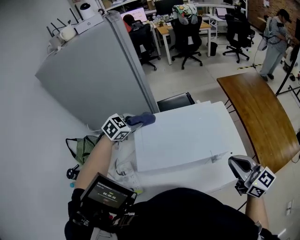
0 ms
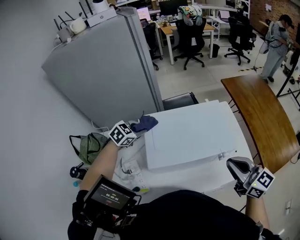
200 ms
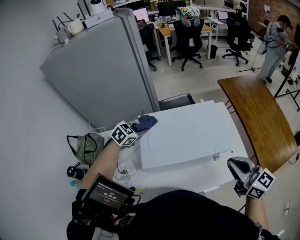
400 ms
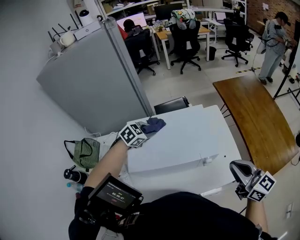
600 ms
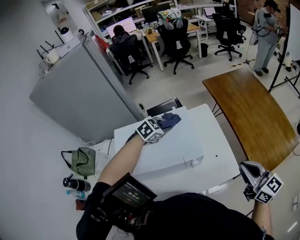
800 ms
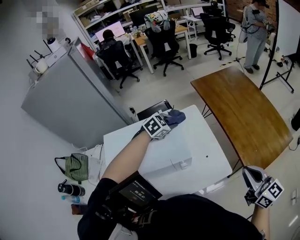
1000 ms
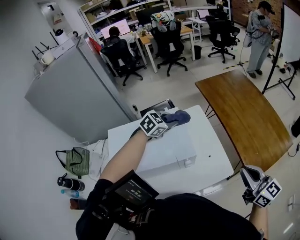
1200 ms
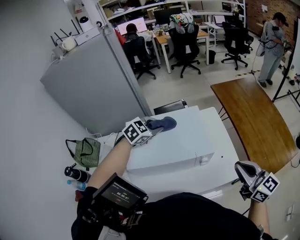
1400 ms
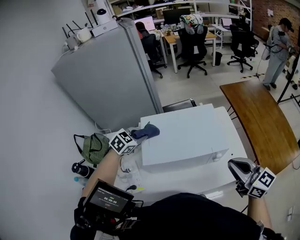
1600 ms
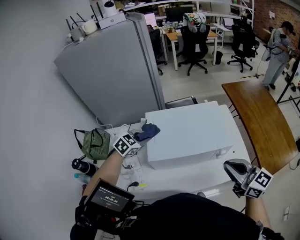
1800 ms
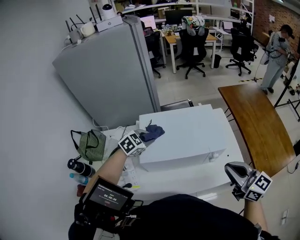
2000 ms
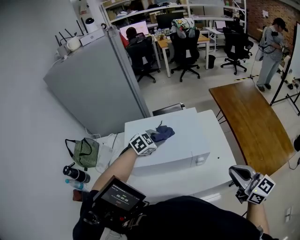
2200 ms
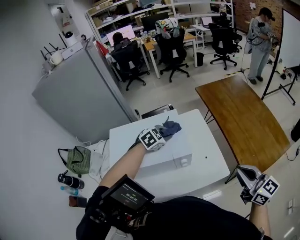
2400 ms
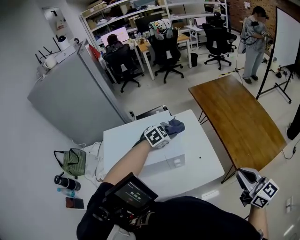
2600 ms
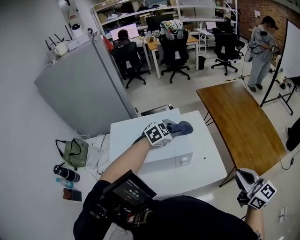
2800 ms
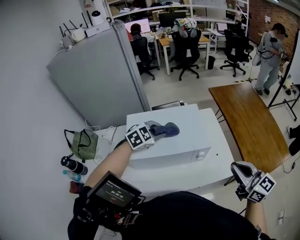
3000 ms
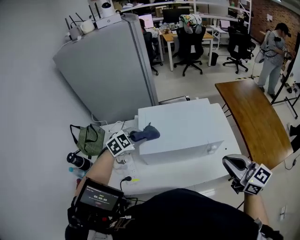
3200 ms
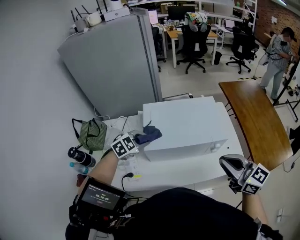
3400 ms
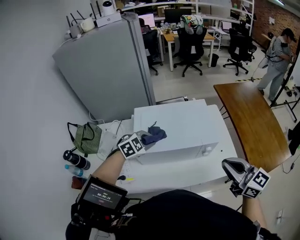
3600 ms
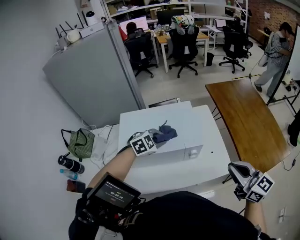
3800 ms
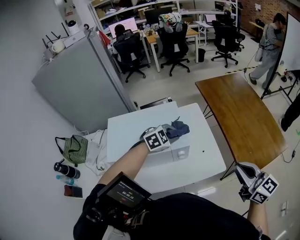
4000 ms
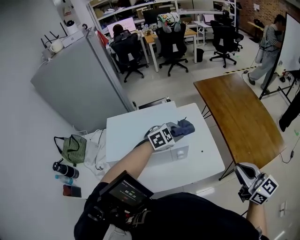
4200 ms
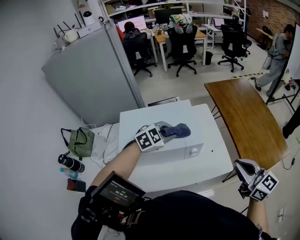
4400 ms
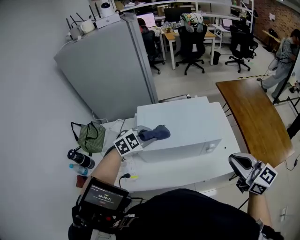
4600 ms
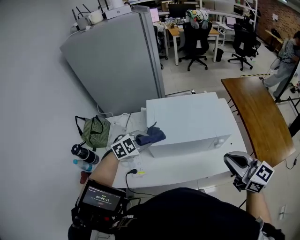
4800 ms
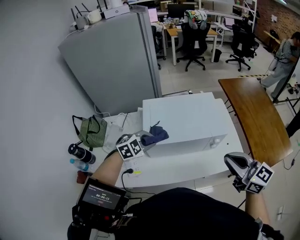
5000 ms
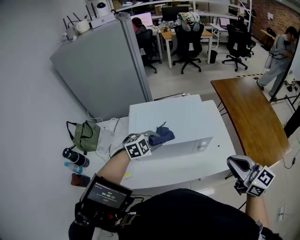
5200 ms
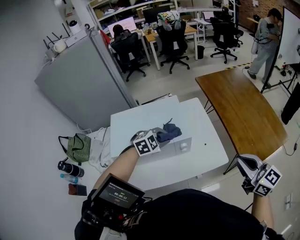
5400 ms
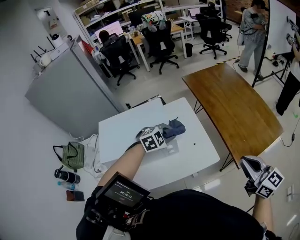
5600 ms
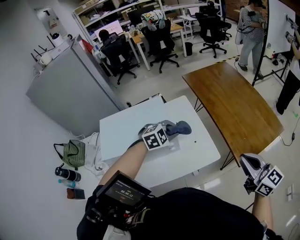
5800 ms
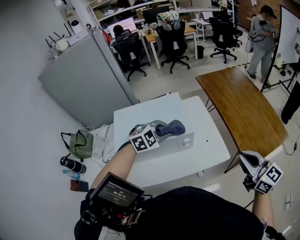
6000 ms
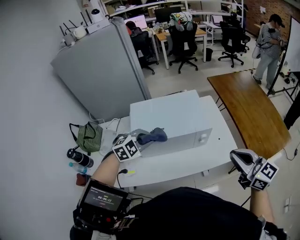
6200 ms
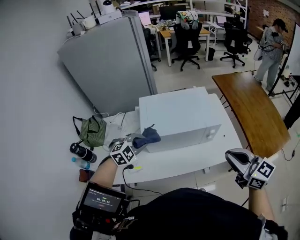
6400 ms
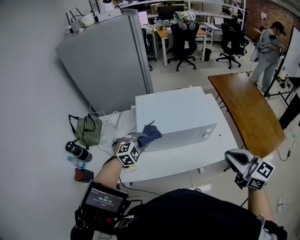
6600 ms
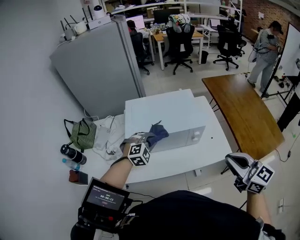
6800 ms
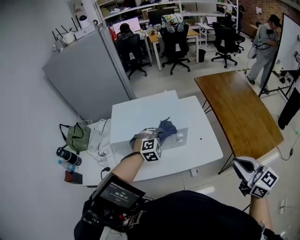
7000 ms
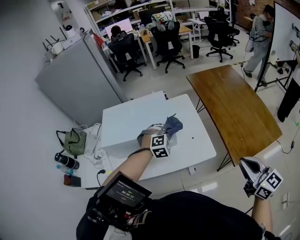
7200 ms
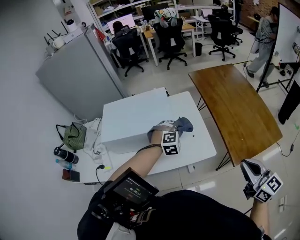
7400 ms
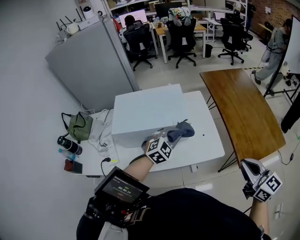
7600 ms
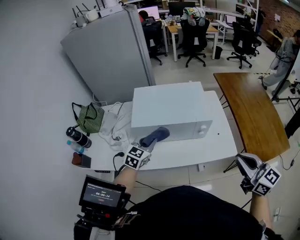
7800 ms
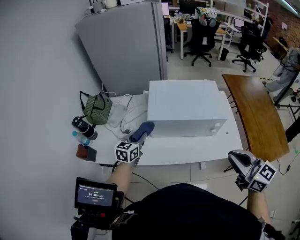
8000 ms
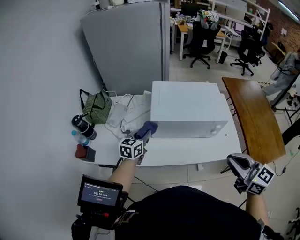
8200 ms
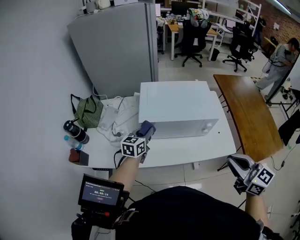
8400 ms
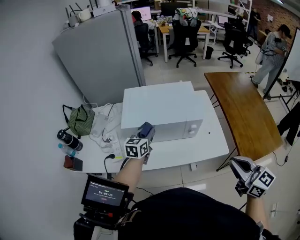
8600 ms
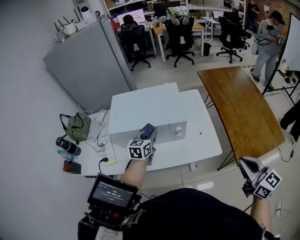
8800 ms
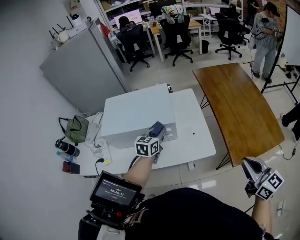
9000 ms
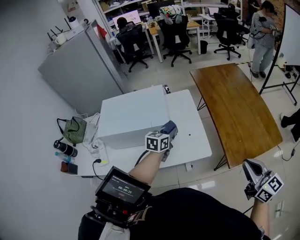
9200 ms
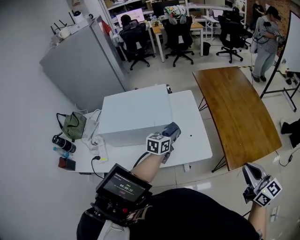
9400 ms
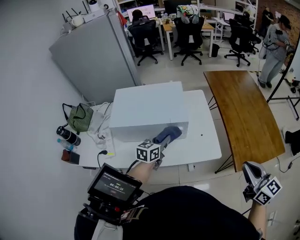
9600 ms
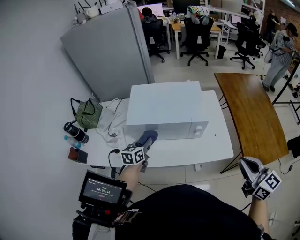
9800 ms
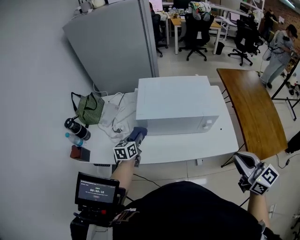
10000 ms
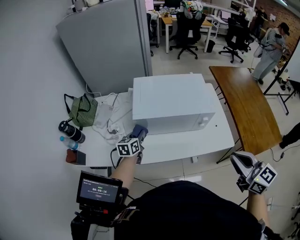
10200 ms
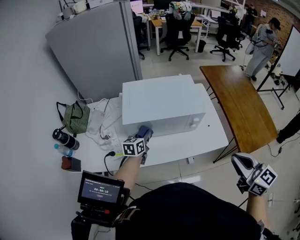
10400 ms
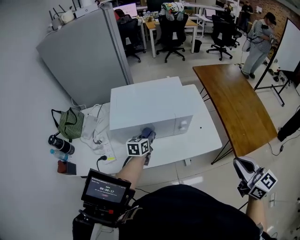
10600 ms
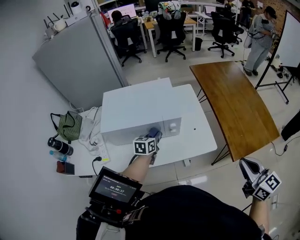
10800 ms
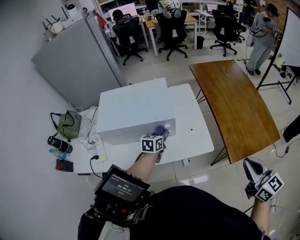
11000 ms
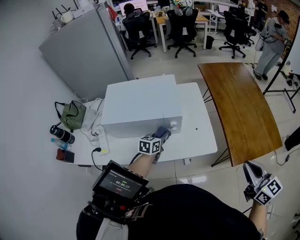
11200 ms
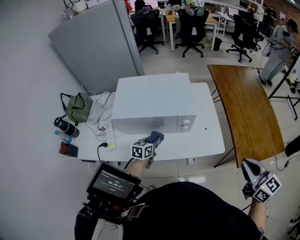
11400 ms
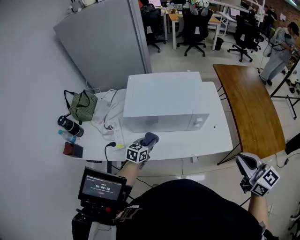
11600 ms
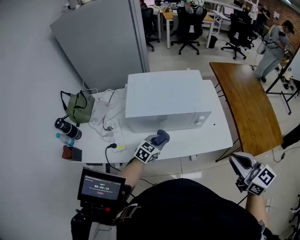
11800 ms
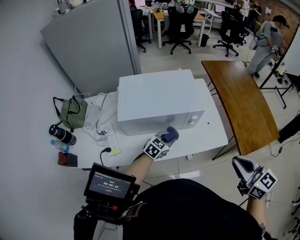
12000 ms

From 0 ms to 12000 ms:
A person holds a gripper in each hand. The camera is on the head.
From 0 ms to 1600 ms: The left gripper moves left and right over roughly 40 cm, changing direction 2 times; the right gripper goes left and right, some 30 cm each way, reversing 2 times.
From 1600 ms to 3000 ms: The left gripper shifts about 20 cm to the right. The right gripper swings left and right, roughly 30 cm each way, with 2 reversals.
From 3000 ms to 4400 ms: The right gripper goes left and right, roughly 25 cm each way, reversing 2 times, while the left gripper moves left and right over about 35 cm, changing direction 2 times.
From 4400 ms to 6000 ms: The right gripper moves left and right over roughly 35 cm, changing direction 2 times. Meanwhile the left gripper moves left and right over approximately 40 cm, changing direction 2 times.
From 6000 ms to 7600 ms: The left gripper goes left and right, about 40 cm each way, reversing 2 times, and rotates roughly 20 degrees, while the right gripper moves left and right over some 30 cm, changing direction 2 times.
From 7600 ms to 9000 ms: The right gripper reaches roughly 25 cm to the left, then returns, while the left gripper is displaced forward by approximately 5 cm, reaches roughly 40 cm to the left, then returns, and twists approximately 50 degrees counterclockwise, seen from behind.
From 9000 ms to 10400 ms: The left gripper moves left and right over roughly 40 cm, changing direction 2 times. Meanwhile the right gripper is displaced to the left by about 25 cm.
From 10400 ms to 12000 ms: The left gripper moves left and right over approximately 25 cm, changing direction 2 times, and turns by about 40 degrees, while the right gripper travels to the right and back again, approximately 25 cm each way.

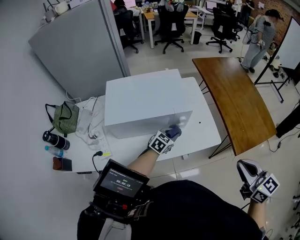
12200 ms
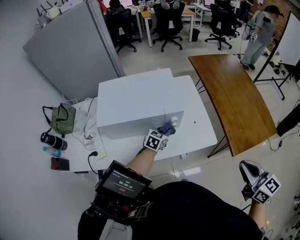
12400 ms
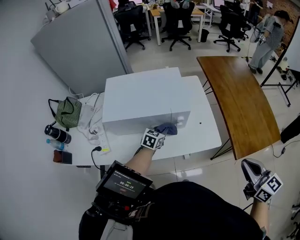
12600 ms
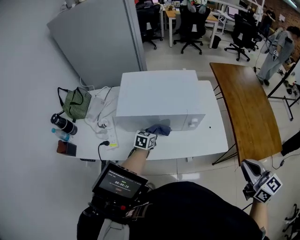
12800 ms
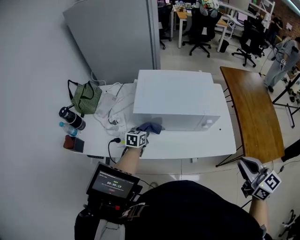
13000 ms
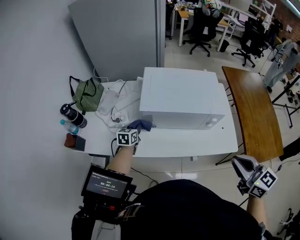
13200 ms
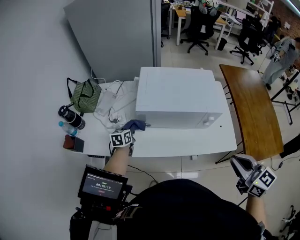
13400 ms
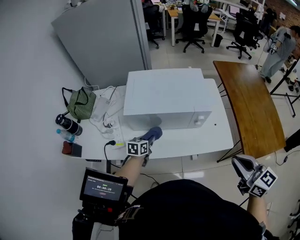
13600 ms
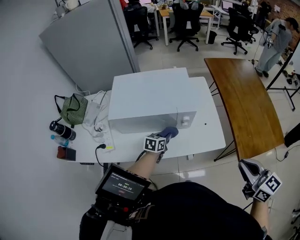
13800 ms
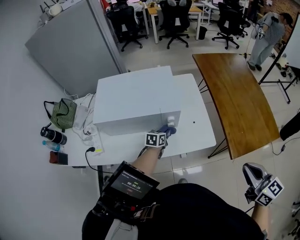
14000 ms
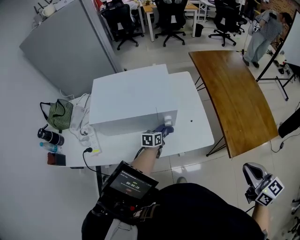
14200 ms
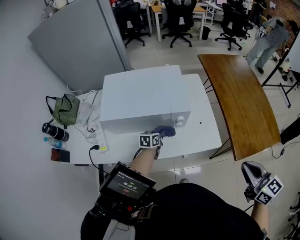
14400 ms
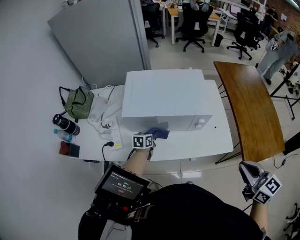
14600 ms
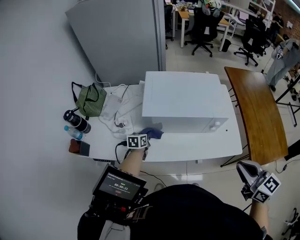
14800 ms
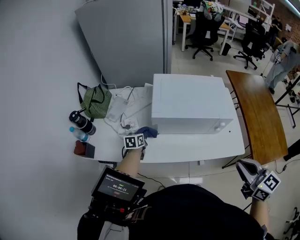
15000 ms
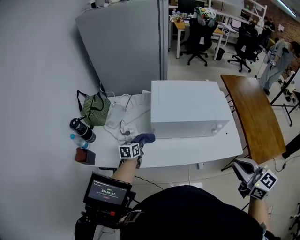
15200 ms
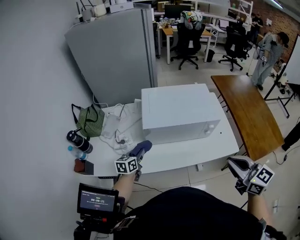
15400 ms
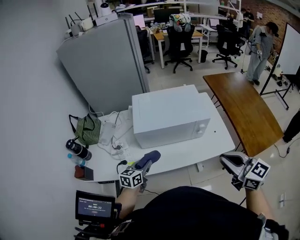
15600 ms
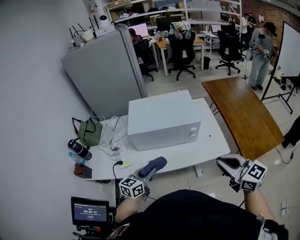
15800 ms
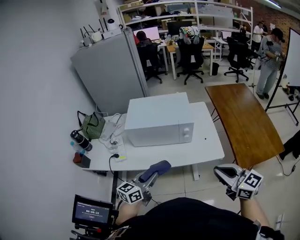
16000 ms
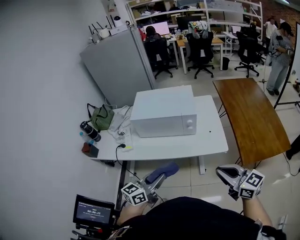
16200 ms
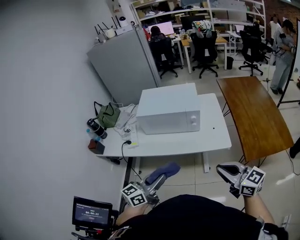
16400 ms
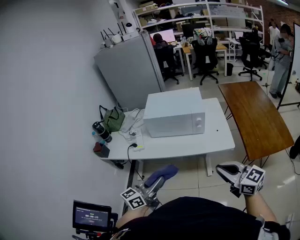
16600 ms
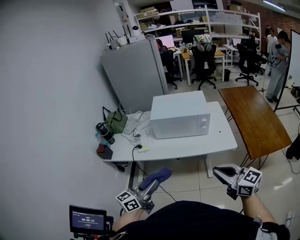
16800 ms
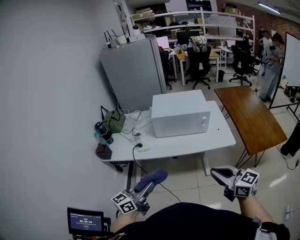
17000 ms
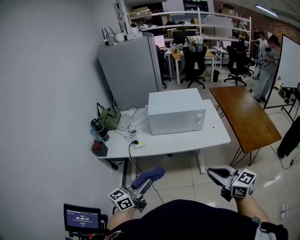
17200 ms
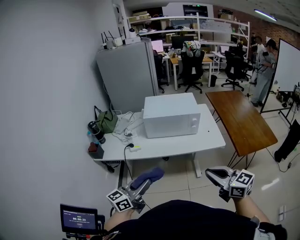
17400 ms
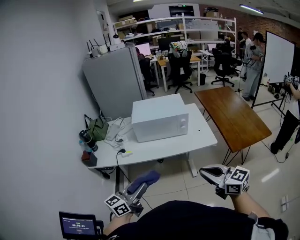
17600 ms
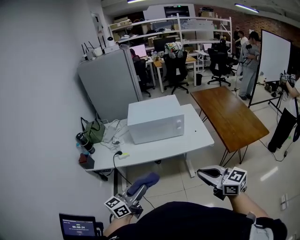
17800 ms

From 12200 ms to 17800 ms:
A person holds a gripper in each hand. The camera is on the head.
From 12200 ms to 13600 ms: The left gripper changes its angle by roughly 40 degrees.
From 13600 ms to 15000 ms: The left gripper travels to the left by roughly 20 cm, while the right gripper heads to the left, covering approximately 10 cm.
From 15000 ms to 16400 ms: The right gripper is displaced backward and to the right by roughly 20 cm, and changes its angle by about 20 degrees. Meanwhile the left gripper goes about 50 cm backward, to the right and upward, and tips its fingers upward by about 40 degrees.
From 16400 ms to 17800 ms: Both grippers travel together to the left and backward, approximately 15 cm.

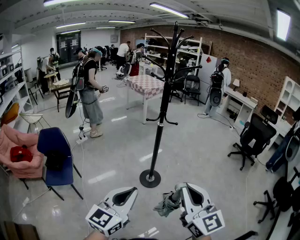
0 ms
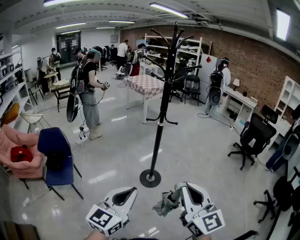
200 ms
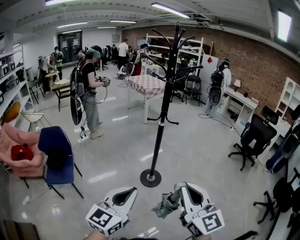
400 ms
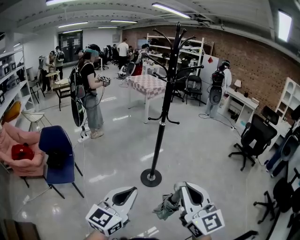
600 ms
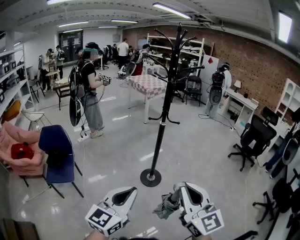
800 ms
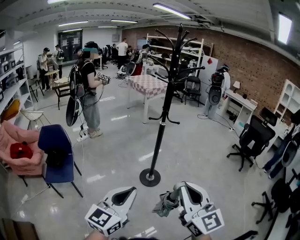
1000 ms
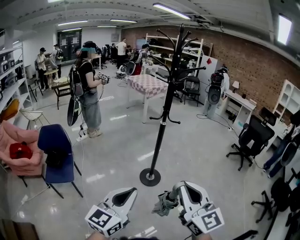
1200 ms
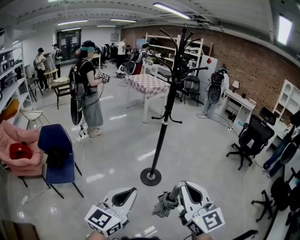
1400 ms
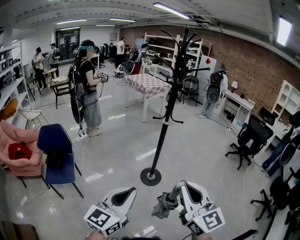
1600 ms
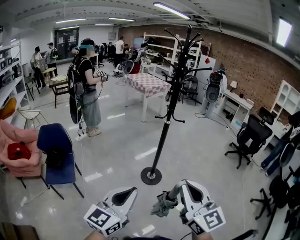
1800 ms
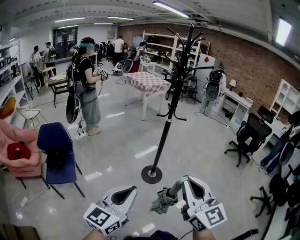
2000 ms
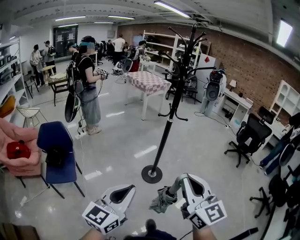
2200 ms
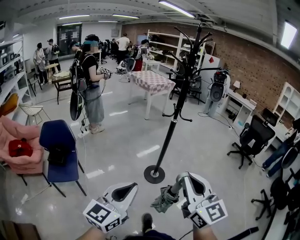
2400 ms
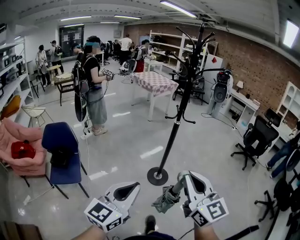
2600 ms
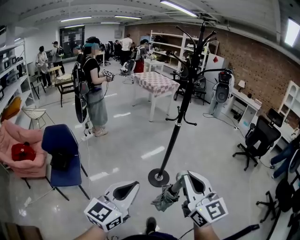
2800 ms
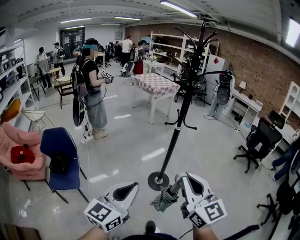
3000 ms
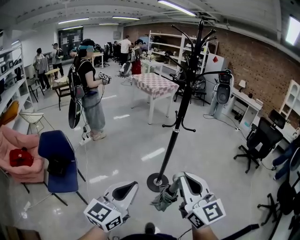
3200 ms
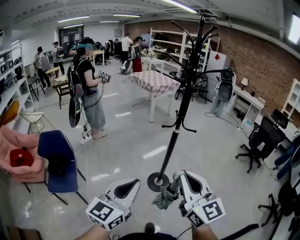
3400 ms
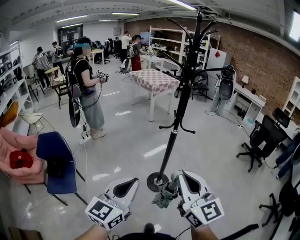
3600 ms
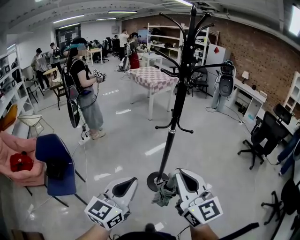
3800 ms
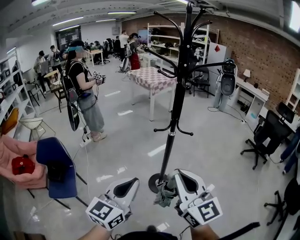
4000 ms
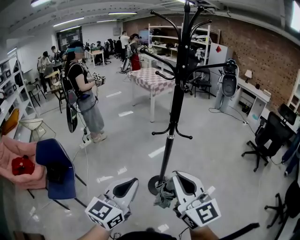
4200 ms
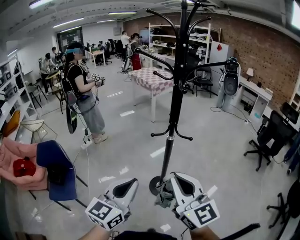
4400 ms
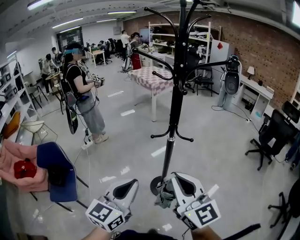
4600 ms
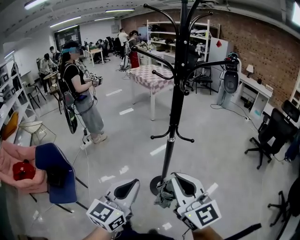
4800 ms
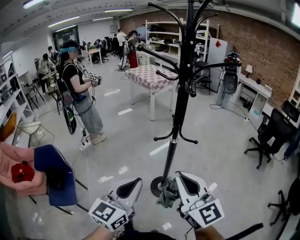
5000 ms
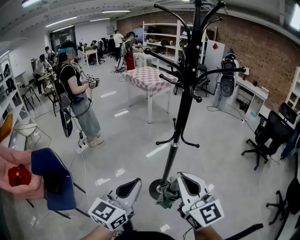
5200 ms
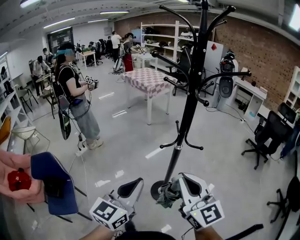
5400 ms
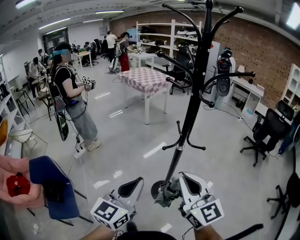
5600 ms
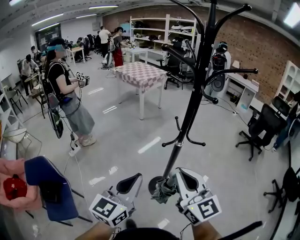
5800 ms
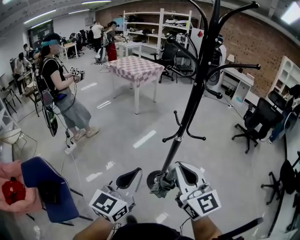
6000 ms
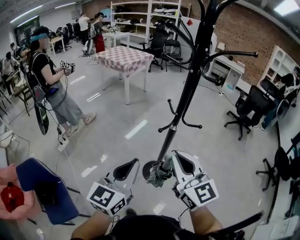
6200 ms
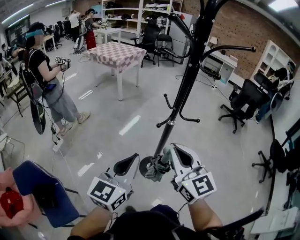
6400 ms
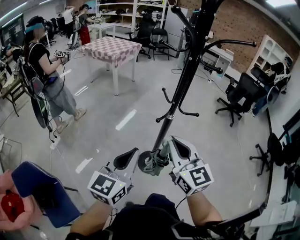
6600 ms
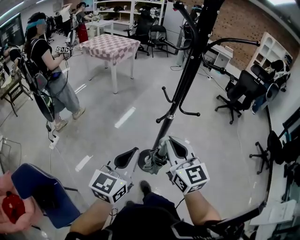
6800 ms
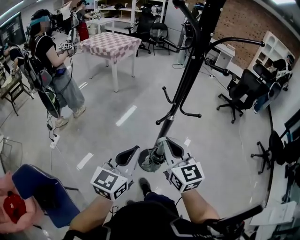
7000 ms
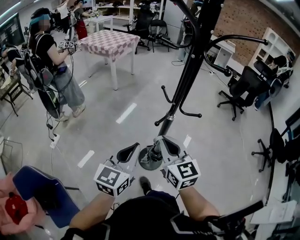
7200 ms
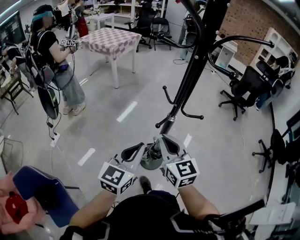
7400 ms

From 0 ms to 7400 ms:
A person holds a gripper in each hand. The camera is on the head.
From 0 ms to 1400 ms: The grippers both shift to the left by roughly 5 cm.
From 1400 ms to 3000 ms: The two grippers go about 15 cm forward and to the left.
From 3000 ms to 4400 ms: The grippers both shift forward and to the right by roughly 20 cm.
From 4400 ms to 6000 ms: The two grippers go some 15 cm forward and to the left.
From 6000 ms to 7400 ms: The two grippers go approximately 15 cm forward and downward.
